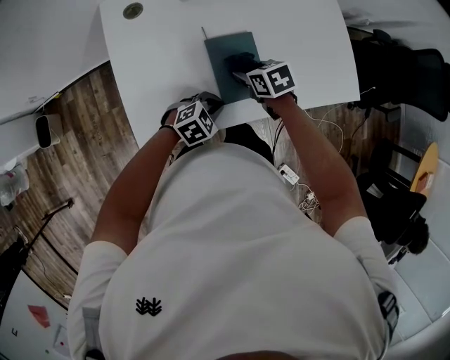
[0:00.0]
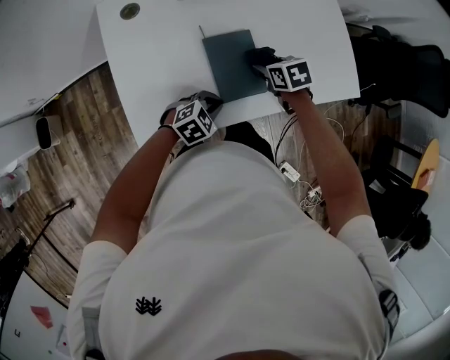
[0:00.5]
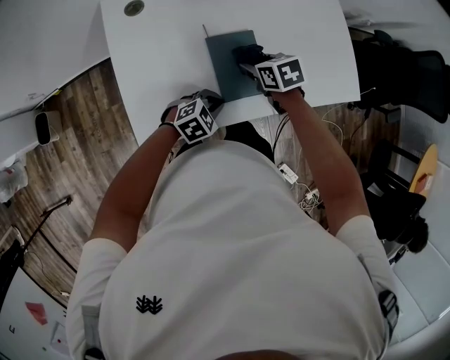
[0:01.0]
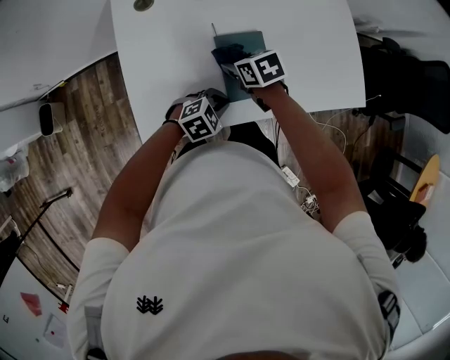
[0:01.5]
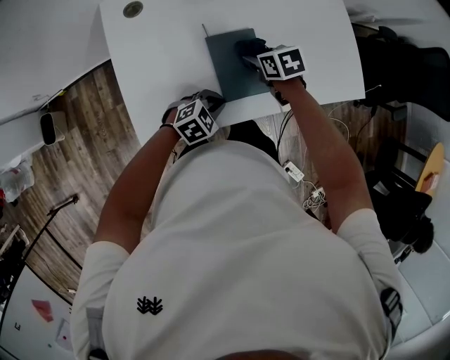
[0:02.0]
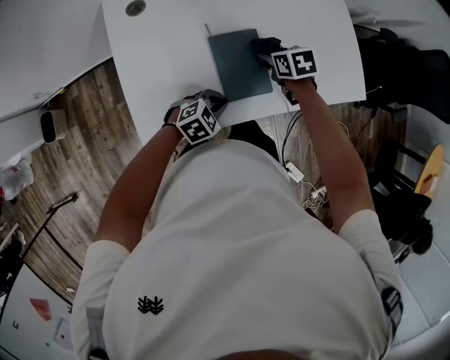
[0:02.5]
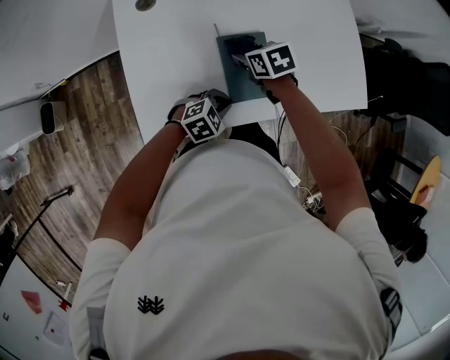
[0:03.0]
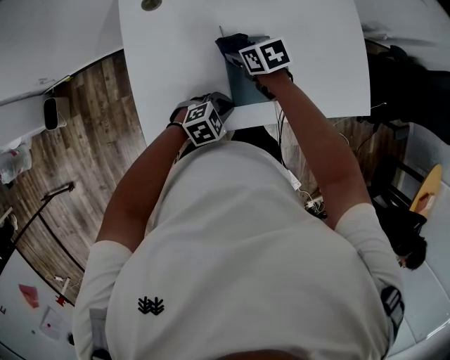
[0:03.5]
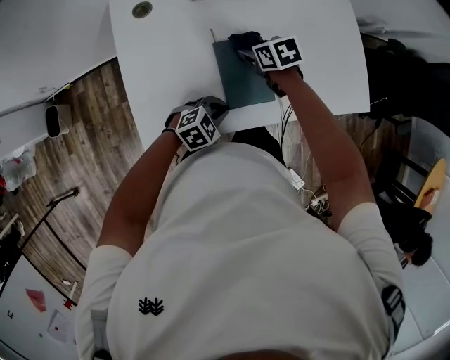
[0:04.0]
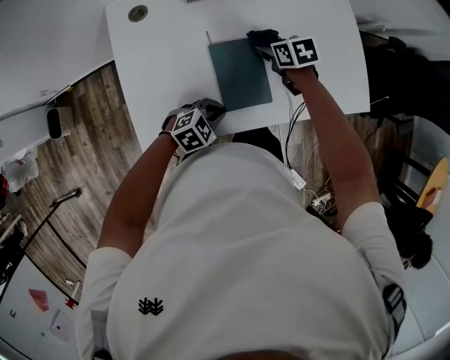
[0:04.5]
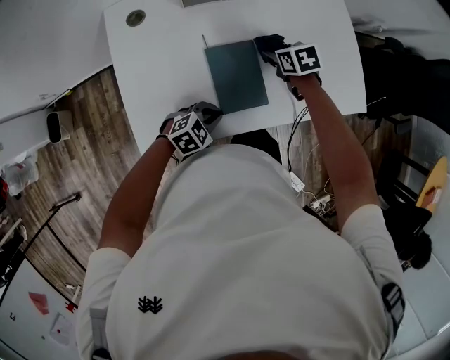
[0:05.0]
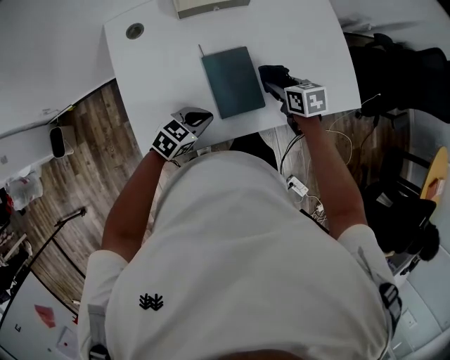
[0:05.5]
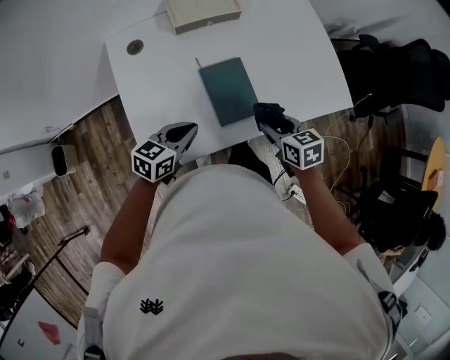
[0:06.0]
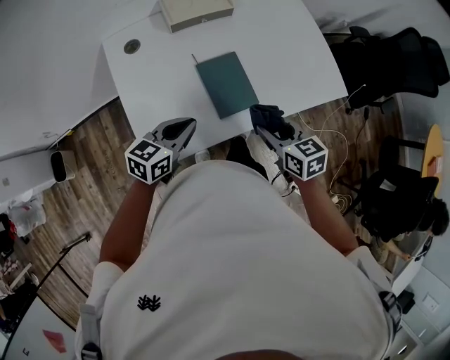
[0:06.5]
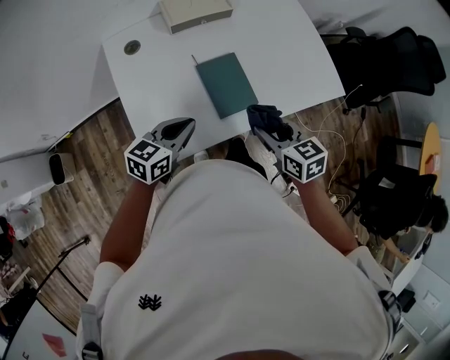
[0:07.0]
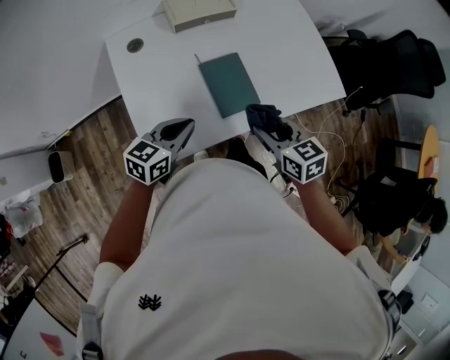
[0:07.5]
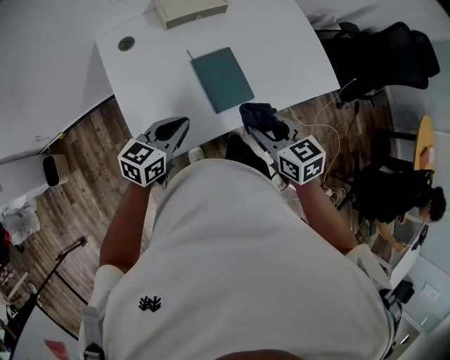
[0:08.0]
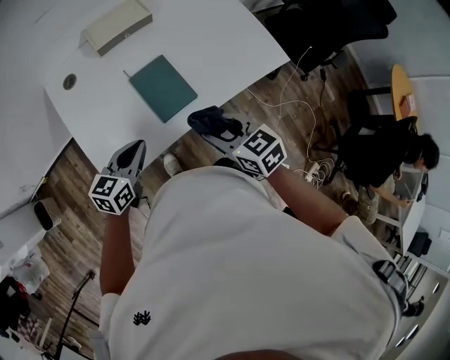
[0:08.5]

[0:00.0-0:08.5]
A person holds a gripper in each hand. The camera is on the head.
0:04.0 to 0:06.5: The left gripper goes some 15 cm upward, and changes its angle by roughly 40 degrees. Meanwhile the right gripper shifts by some 25 cm, and swivels about 20 degrees.
0:06.5 to 0:08.5: The right gripper goes about 5 cm backward.

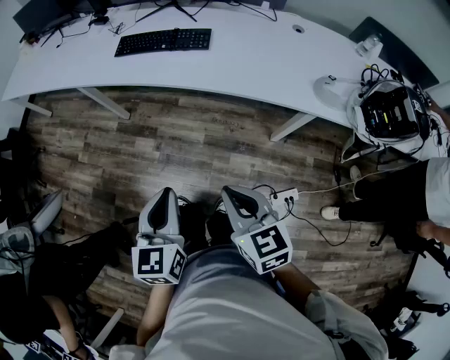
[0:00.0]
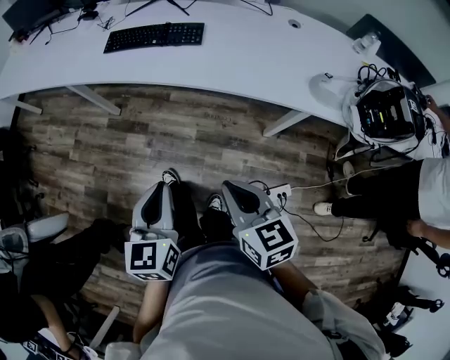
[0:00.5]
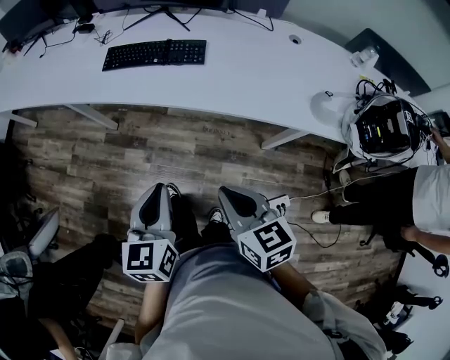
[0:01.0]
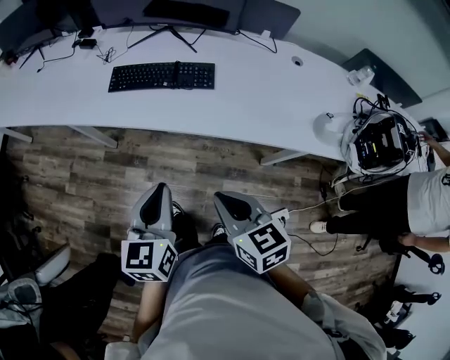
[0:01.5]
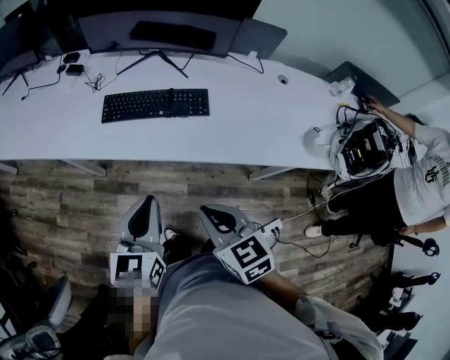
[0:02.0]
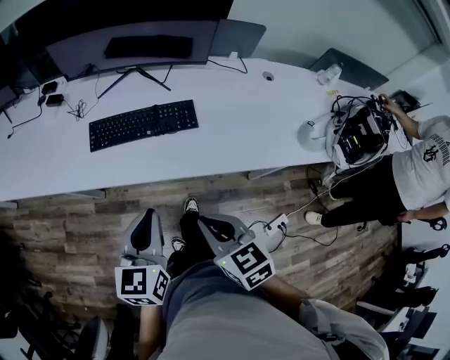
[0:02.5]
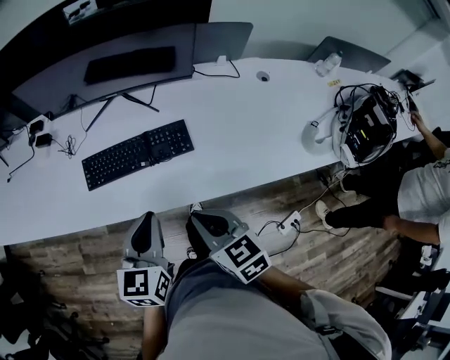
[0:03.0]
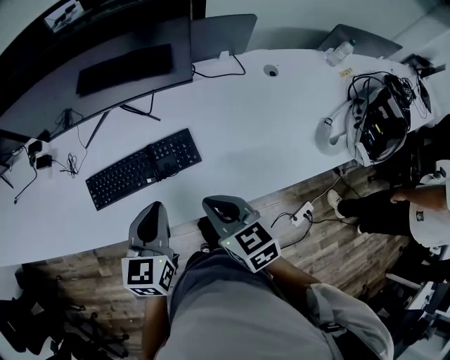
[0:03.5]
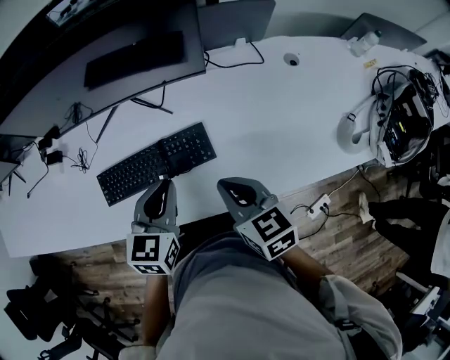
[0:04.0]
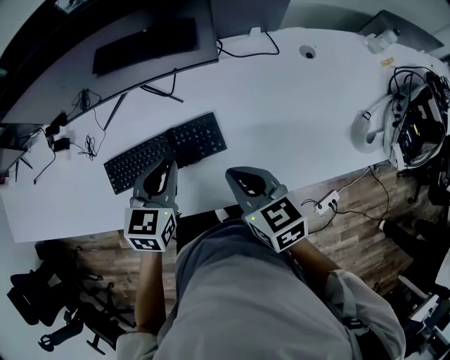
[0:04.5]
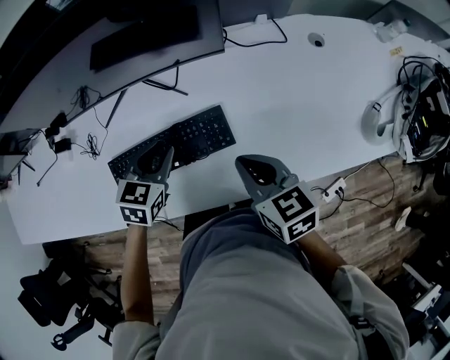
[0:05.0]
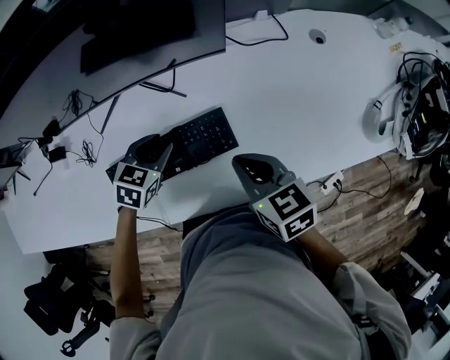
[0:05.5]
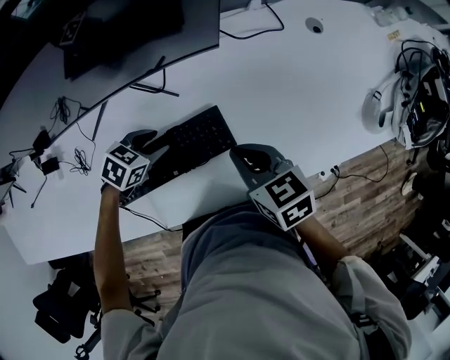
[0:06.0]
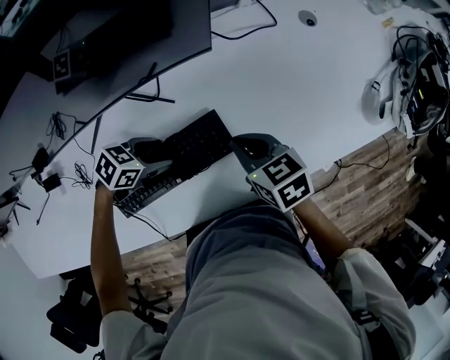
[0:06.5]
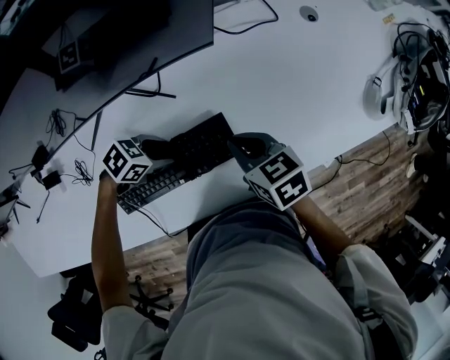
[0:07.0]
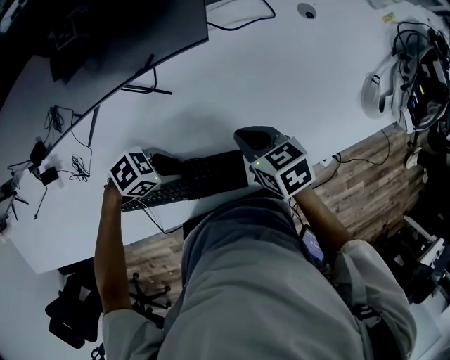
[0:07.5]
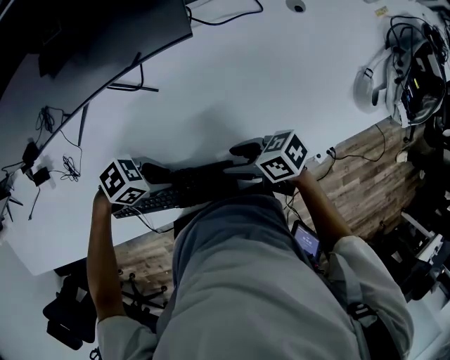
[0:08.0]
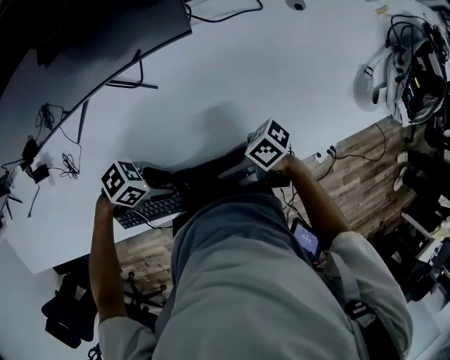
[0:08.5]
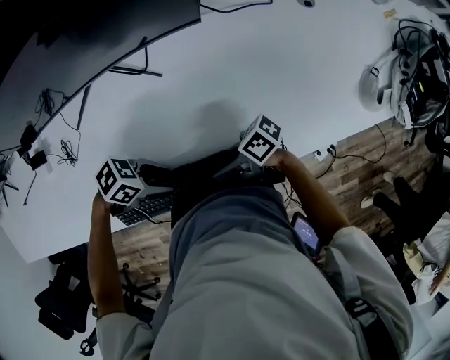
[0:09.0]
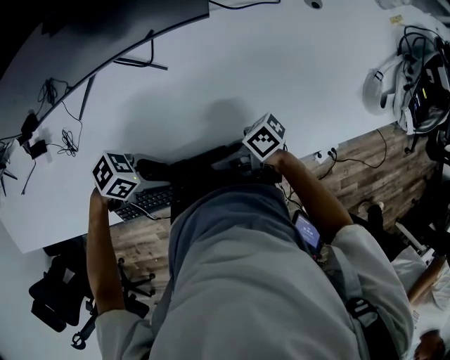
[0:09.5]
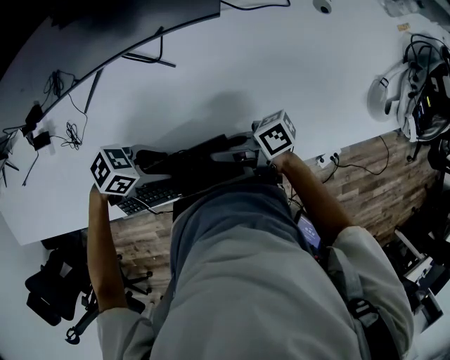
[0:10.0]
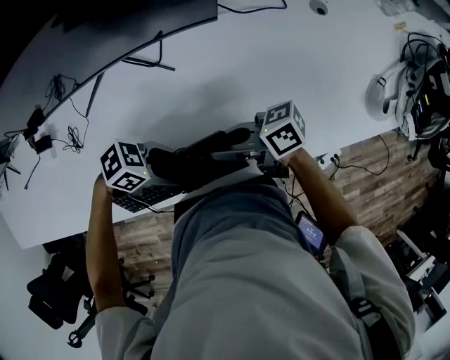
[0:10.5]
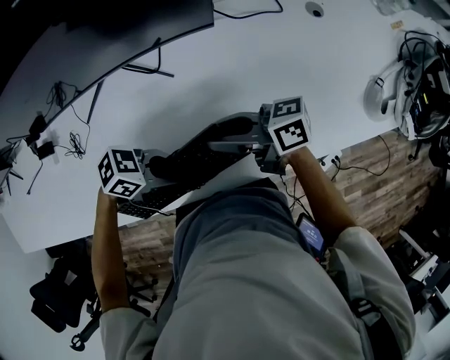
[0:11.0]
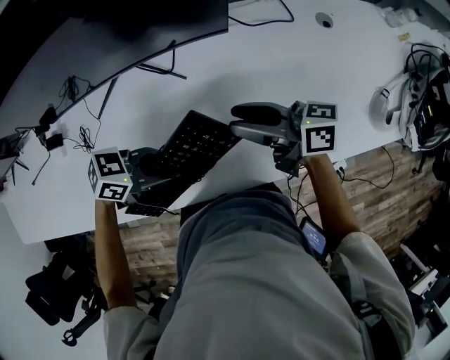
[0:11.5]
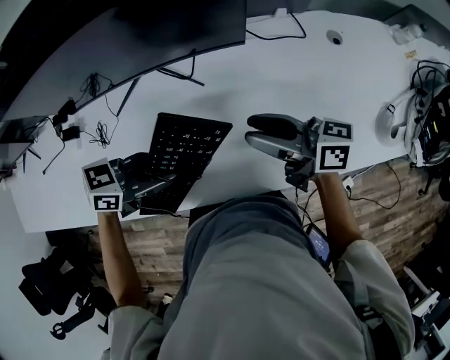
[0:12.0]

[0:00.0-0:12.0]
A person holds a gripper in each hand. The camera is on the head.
0:00.0 to 0:02.0: The grippers both shift forward and to the left by about 30 cm.
0:02.0 to 0:04.0: Both grippers move forward, about 30 cm. The left gripper rotates about 30 degrees.
0:04.0 to 0:06.0: The right gripper moves approximately 10 cm. The left gripper goes approximately 20 cm downward, and changes its angle by some 50 degrees.
0:06.0 to 0:08.0: The left gripper moves roughly 15 cm, and changes its angle by some 40 degrees; the right gripper shifts some 10 cm downward, swivels roughly 40 degrees, and opens up.
0:08.0 to 0:10.0: The right gripper shifts about 5 cm to the right, swivels some 30 degrees, and closes up.
0:10.0 to 0:12.0: The grippers both shift upward by approximately 15 cm. The left gripper swivels about 30 degrees, while the right gripper changes its angle by about 30 degrees, and opens its fingers.

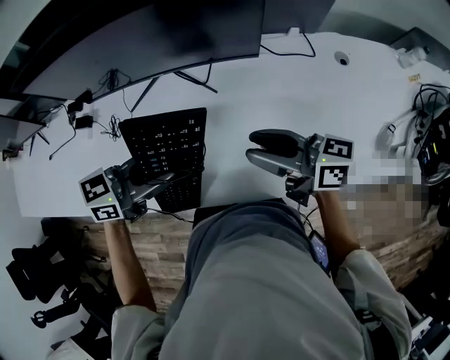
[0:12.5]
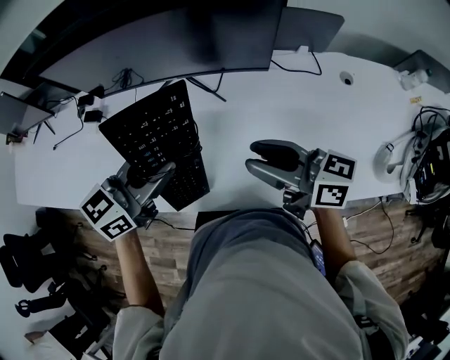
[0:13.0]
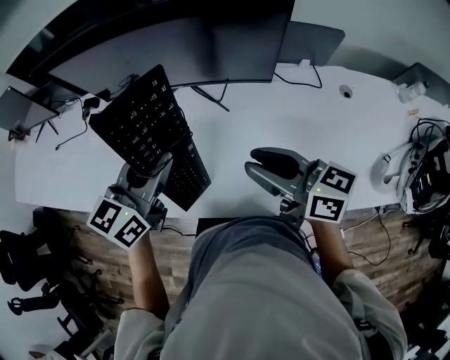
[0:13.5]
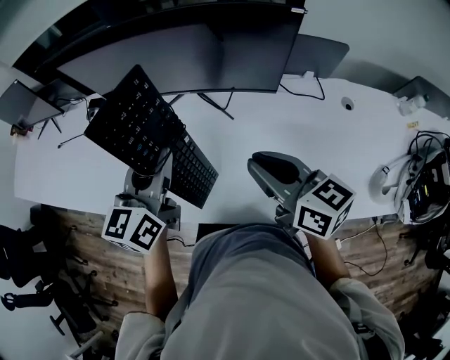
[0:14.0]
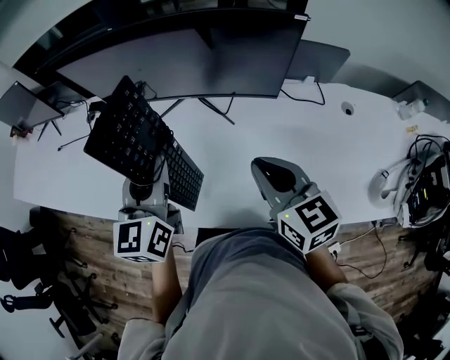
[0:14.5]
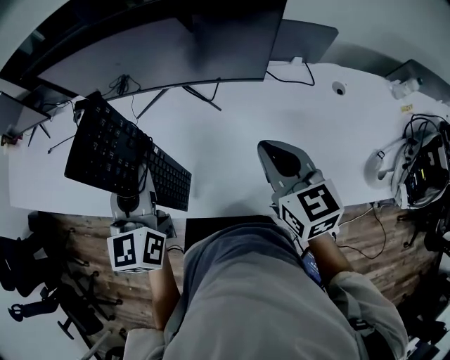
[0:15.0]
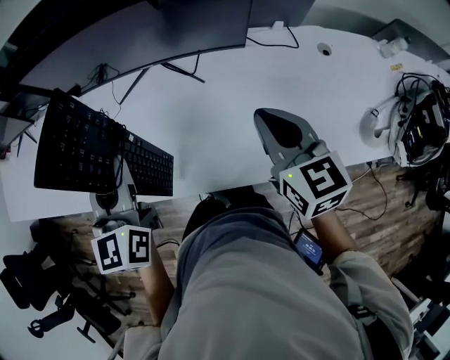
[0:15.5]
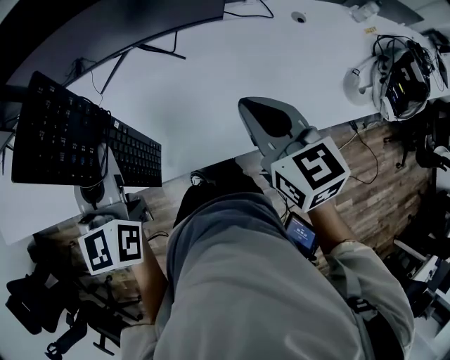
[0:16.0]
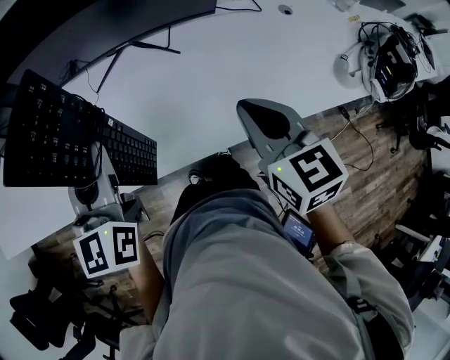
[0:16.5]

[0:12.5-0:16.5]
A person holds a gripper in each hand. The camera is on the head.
0:12.5 to 0:14.5: The left gripper goes approximately 10 cm upward, and swivels roughly 70 degrees. The right gripper shifts by some 5 cm, turns by roughly 40 degrees, and closes its fingers.
0:14.5 to 0:16.5: The right gripper is displaced backward by roughly 10 cm, and turns by roughly 20 degrees. The left gripper moves backward and to the left, some 10 cm.

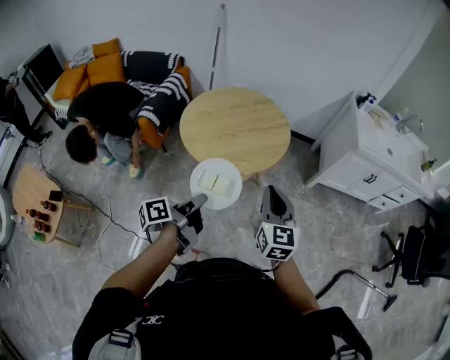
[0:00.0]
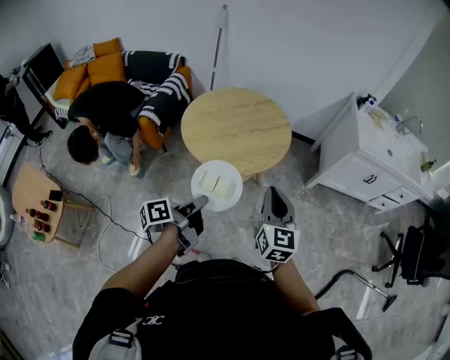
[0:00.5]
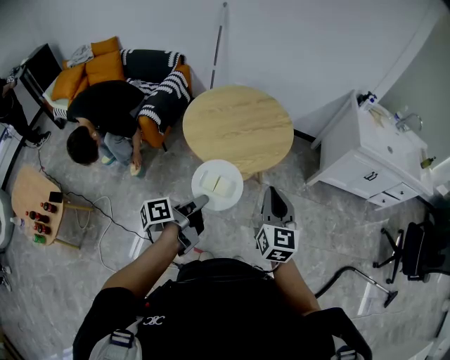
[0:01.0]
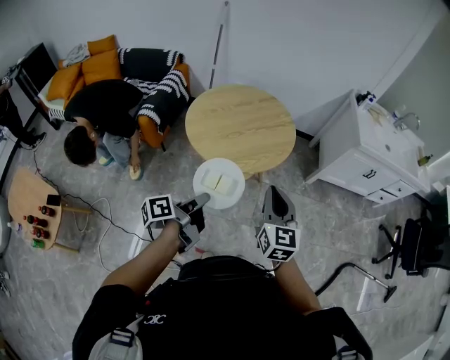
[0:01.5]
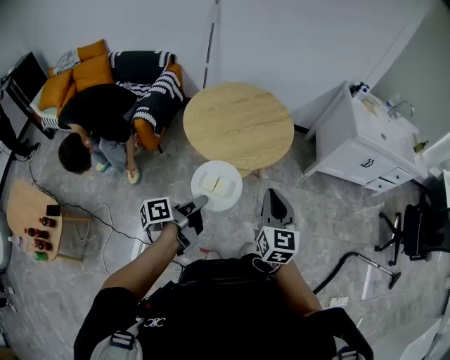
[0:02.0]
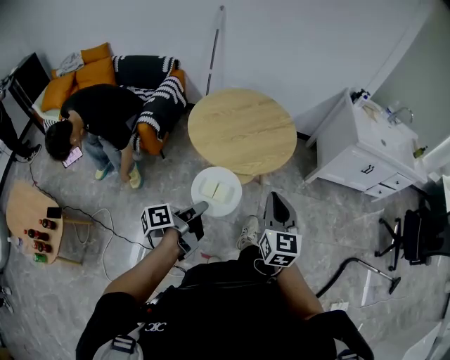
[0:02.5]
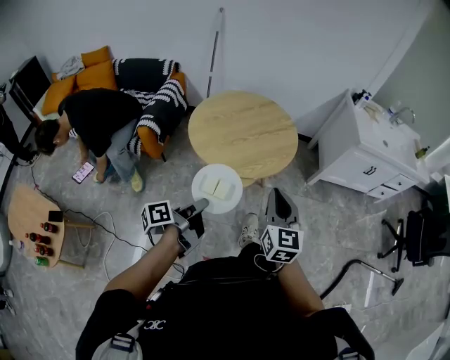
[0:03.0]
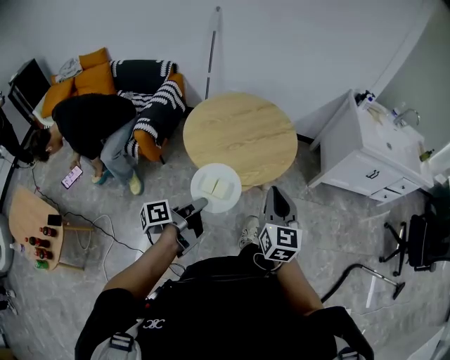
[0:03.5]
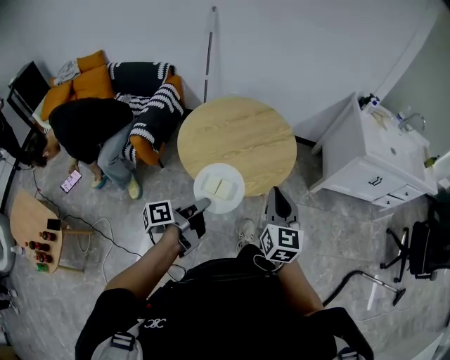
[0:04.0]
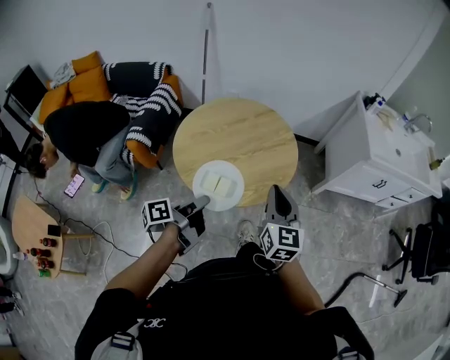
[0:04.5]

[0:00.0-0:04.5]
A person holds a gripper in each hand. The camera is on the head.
0:00.0 to 0:02.0: The right gripper ends up some 10 cm from where it was.
0:02.0 to 0:04.5: The right gripper changes place by some 20 cm.
